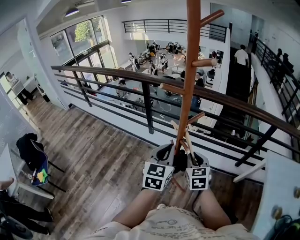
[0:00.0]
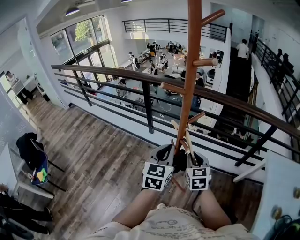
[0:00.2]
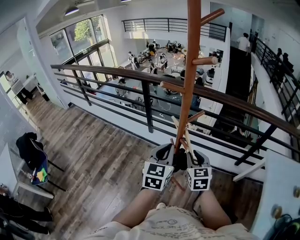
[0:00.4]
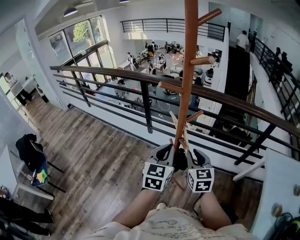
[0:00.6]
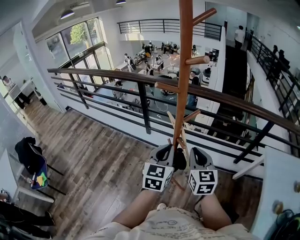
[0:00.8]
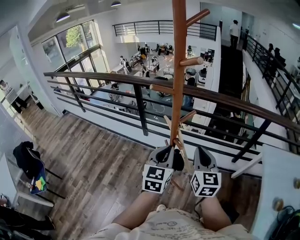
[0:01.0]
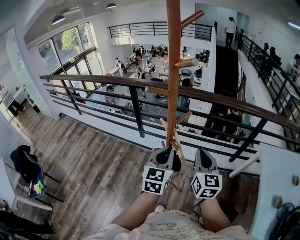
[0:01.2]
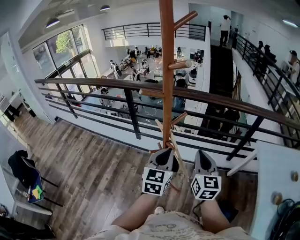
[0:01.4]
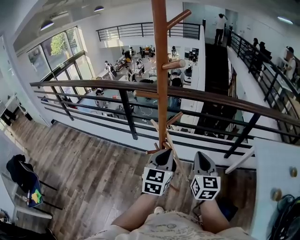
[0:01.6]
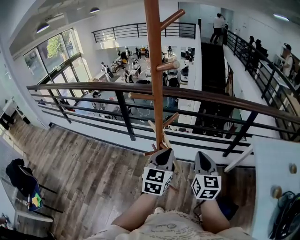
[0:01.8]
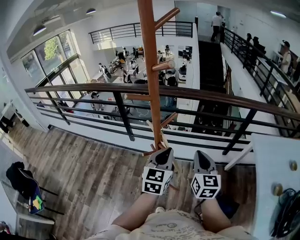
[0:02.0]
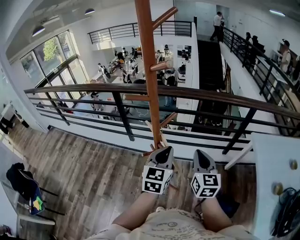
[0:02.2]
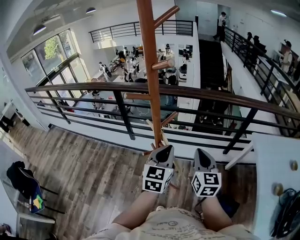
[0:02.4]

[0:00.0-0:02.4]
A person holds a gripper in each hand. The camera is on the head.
0:00.0 to 0:01.2: The right gripper shifts approximately 10 cm upward and to the right, and changes its angle by roughly 30 degrees.
0:01.2 to 0:02.4: The grippers move only a little.

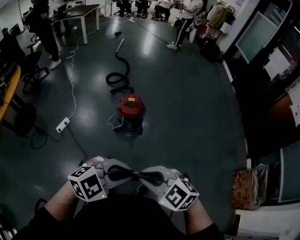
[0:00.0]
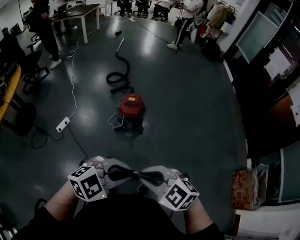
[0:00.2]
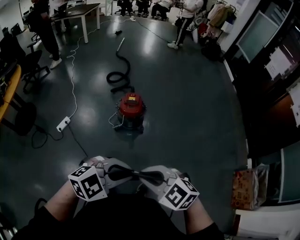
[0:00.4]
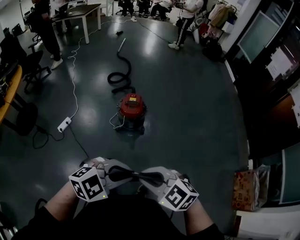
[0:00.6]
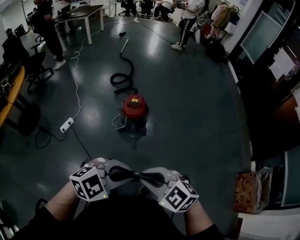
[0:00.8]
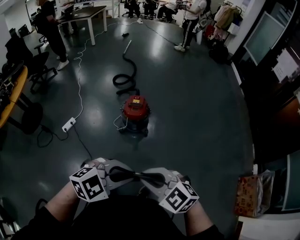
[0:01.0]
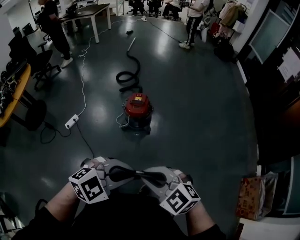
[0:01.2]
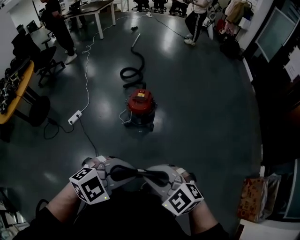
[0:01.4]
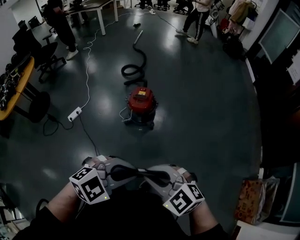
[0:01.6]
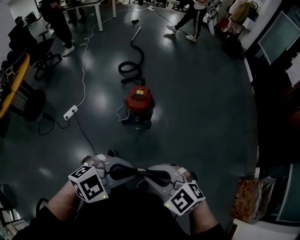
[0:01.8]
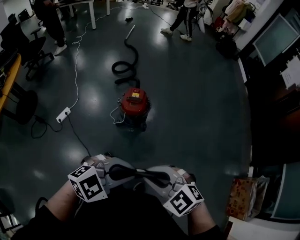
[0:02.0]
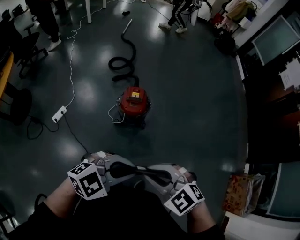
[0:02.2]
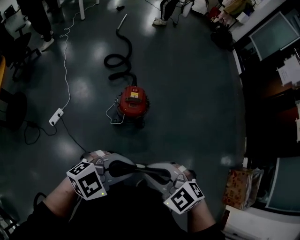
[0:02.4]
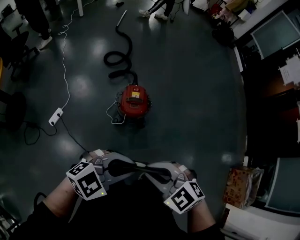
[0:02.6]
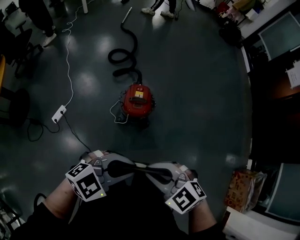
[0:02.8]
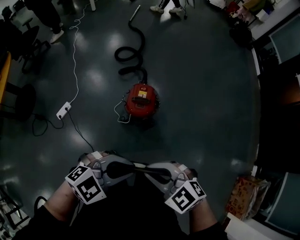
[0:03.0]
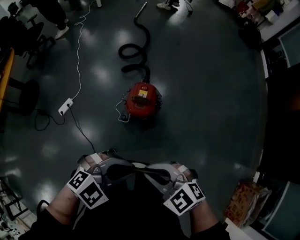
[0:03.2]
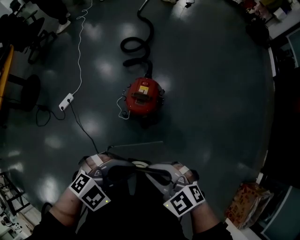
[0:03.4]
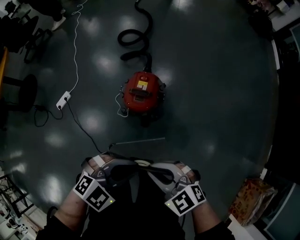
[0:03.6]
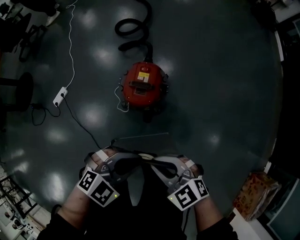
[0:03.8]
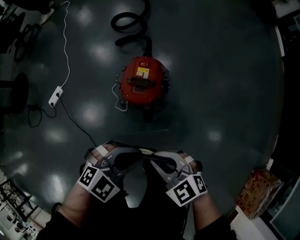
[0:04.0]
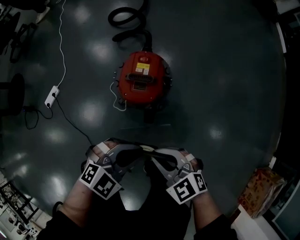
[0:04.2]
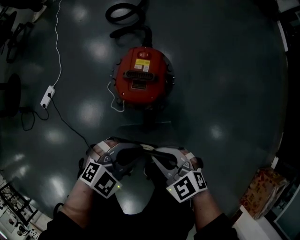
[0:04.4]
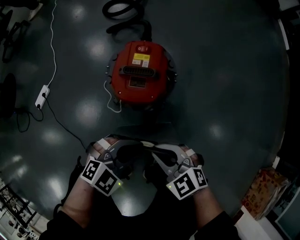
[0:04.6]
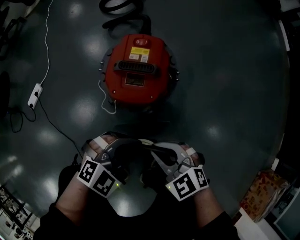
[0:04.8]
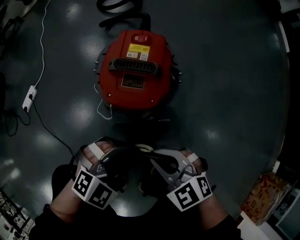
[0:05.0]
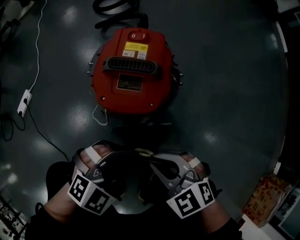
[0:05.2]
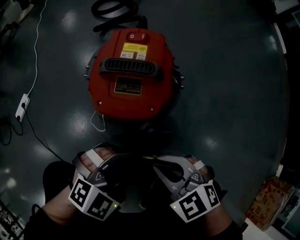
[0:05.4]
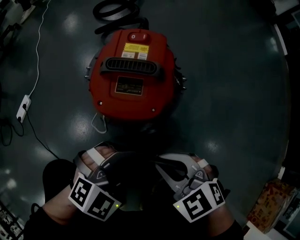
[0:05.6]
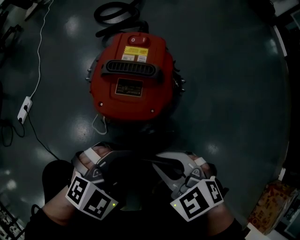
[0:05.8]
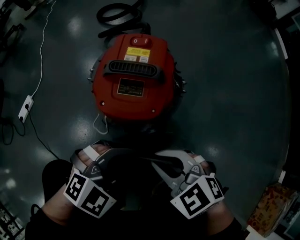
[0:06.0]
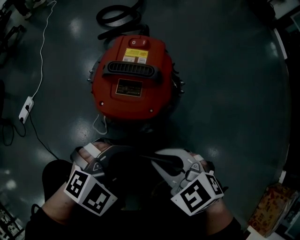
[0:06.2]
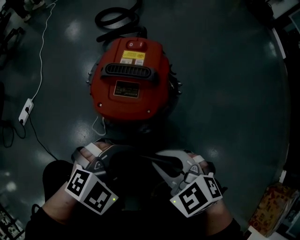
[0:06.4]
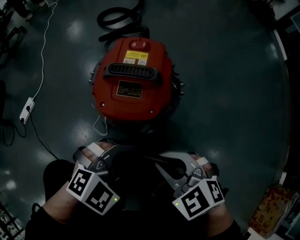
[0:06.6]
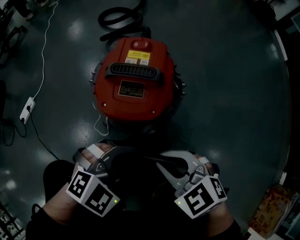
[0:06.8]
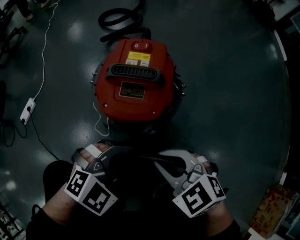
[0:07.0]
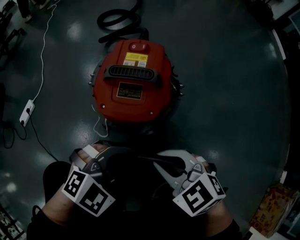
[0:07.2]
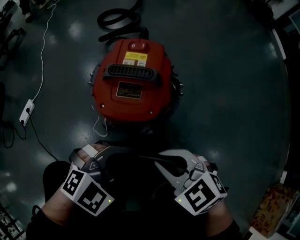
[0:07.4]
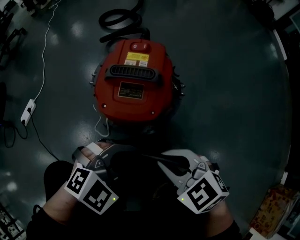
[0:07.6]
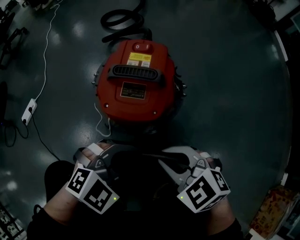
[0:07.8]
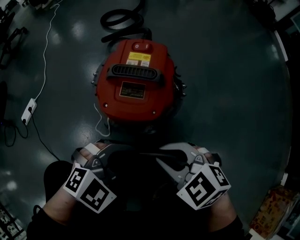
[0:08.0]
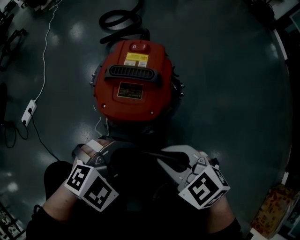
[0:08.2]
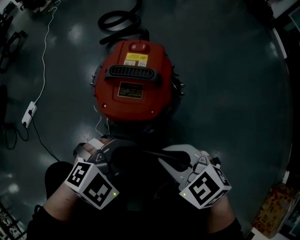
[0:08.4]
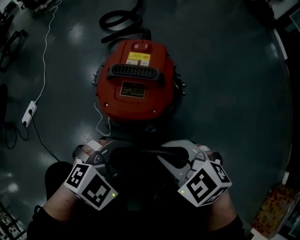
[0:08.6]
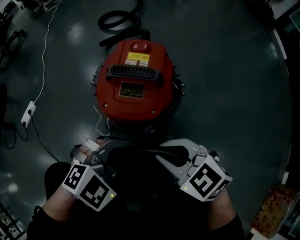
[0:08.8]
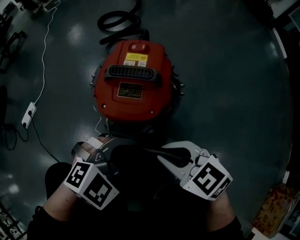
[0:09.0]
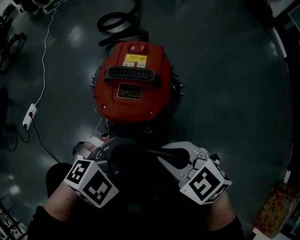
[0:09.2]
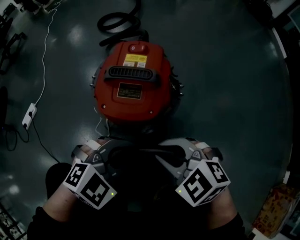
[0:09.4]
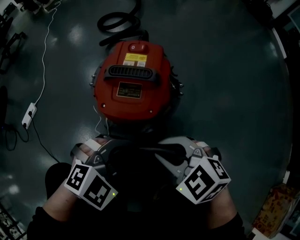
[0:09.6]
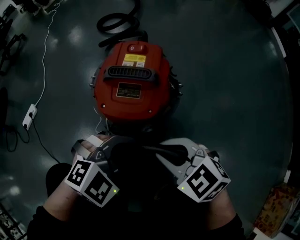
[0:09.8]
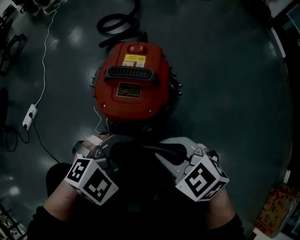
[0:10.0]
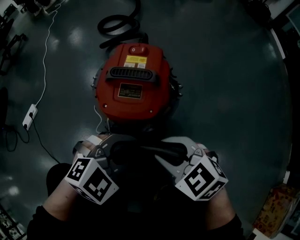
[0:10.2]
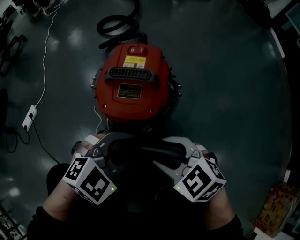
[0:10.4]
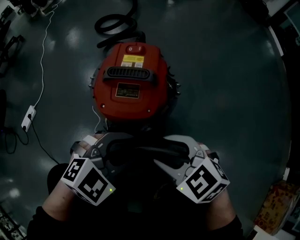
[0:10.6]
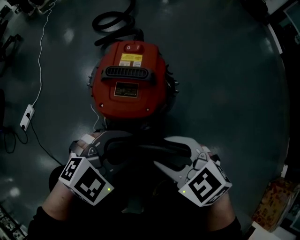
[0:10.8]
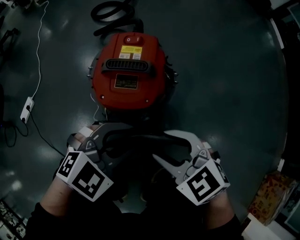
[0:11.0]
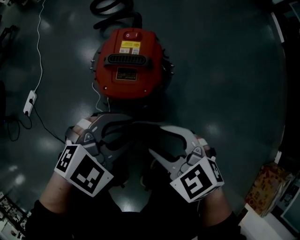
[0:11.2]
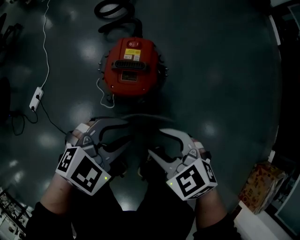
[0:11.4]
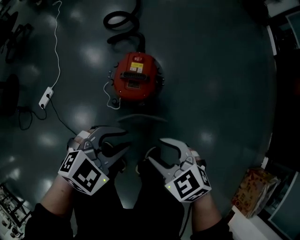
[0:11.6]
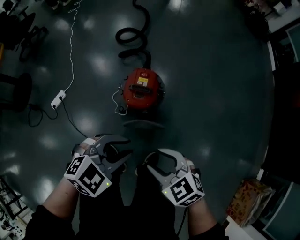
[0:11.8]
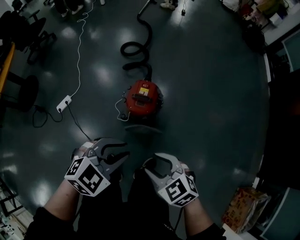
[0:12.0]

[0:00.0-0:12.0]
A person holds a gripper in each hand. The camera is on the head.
0:00.0 to 0:01.6: The left gripper moves roughly 10 cm; the right gripper shifts by approximately 10 cm.
0:01.6 to 0:03.0: The right gripper shifts by about 25 cm. The left gripper changes place by roughly 25 cm.
0:03.0 to 0:04.4: The grippers both shift downward by roughly 35 cm.
0:04.4 to 0:06.0: The two grippers go roughly 15 cm downward.
0:06.0 to 0:09.0: The grippers make only small movements.
0:09.0 to 0:10.4: The left gripper opens up. The right gripper opens its fingers.
0:10.4 to 0:12.0: Both grippers travel together upward, roughly 40 cm.

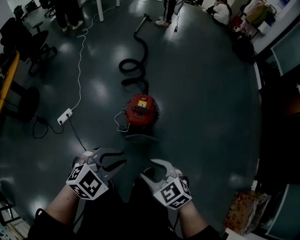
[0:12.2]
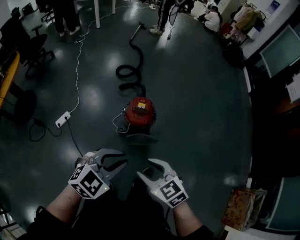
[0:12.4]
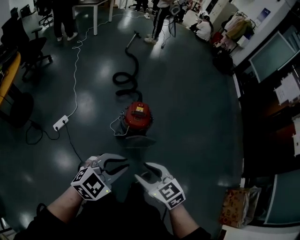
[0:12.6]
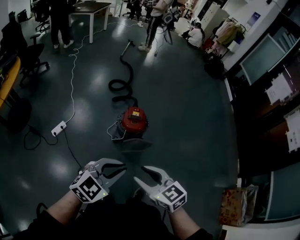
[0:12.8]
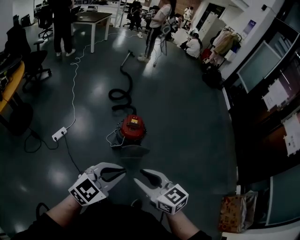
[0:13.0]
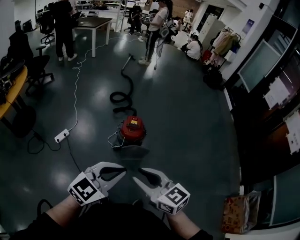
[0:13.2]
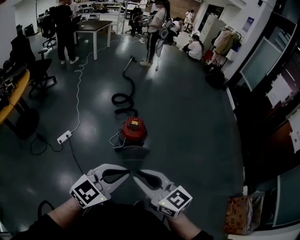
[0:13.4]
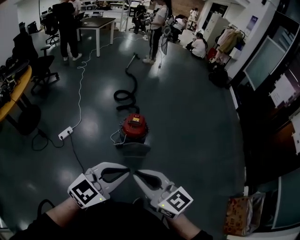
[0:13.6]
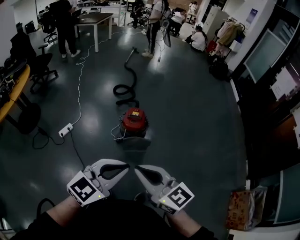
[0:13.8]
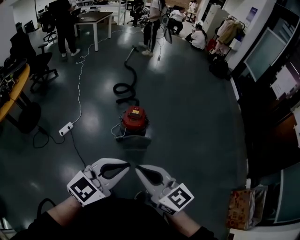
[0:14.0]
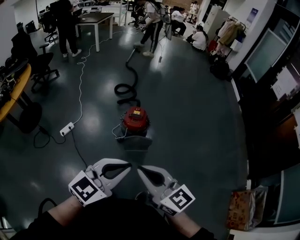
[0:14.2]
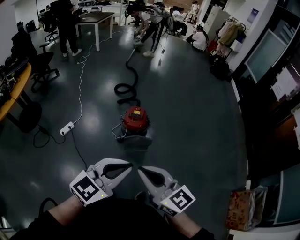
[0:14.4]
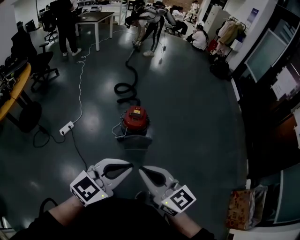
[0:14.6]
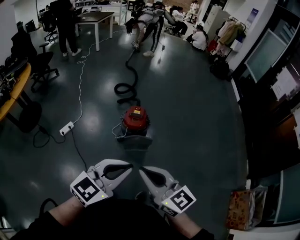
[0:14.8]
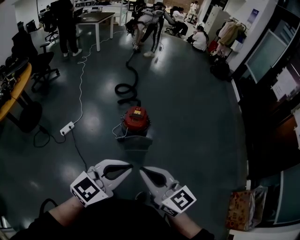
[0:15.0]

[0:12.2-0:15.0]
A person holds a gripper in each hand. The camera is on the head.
0:12.2 to 0:13.6: The right gripper travels upward and backward by approximately 30 cm, angles its fingers upward, by approximately 40 degrees, and closes up; the left gripper goes approximately 30 cm backward and upward, swivels roughly 30 degrees, and closes its fingers.
0:13.6 to 0:15.0: There are only small adjustments of the grippers.

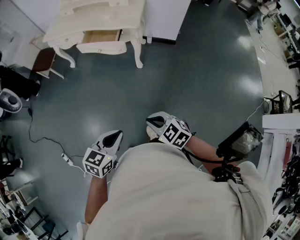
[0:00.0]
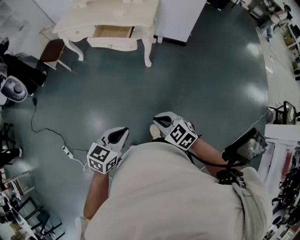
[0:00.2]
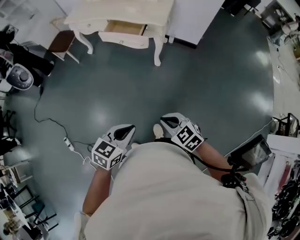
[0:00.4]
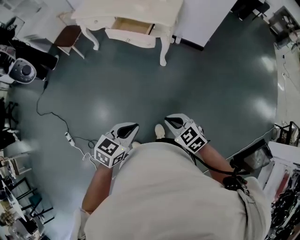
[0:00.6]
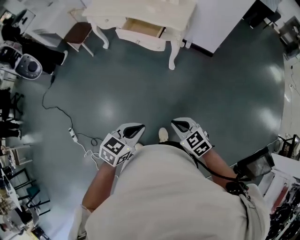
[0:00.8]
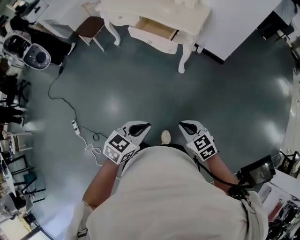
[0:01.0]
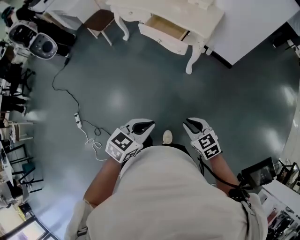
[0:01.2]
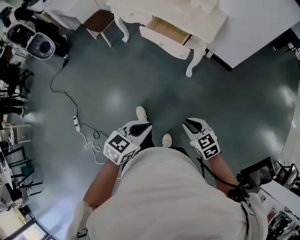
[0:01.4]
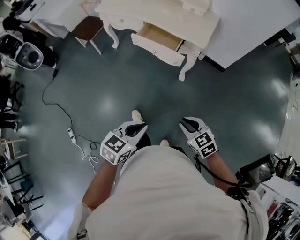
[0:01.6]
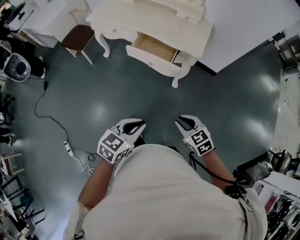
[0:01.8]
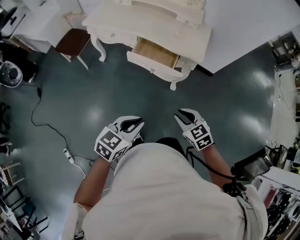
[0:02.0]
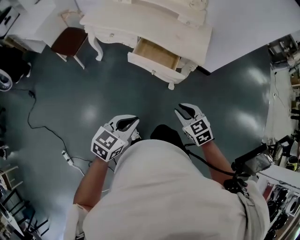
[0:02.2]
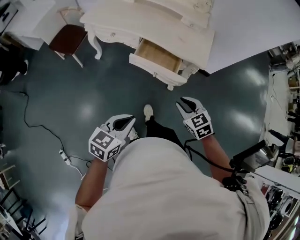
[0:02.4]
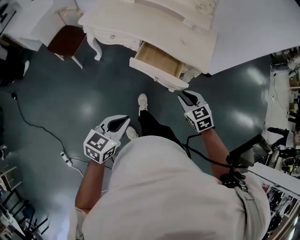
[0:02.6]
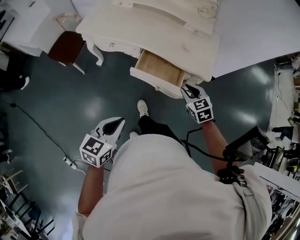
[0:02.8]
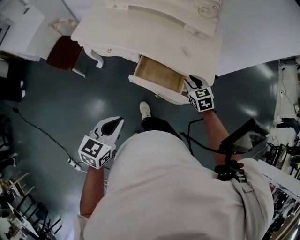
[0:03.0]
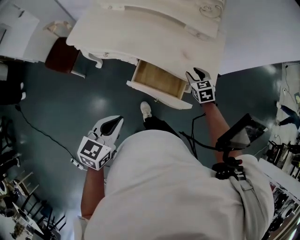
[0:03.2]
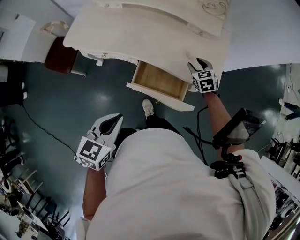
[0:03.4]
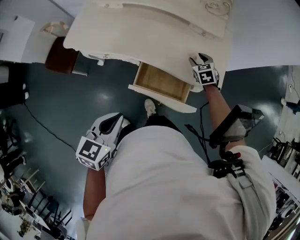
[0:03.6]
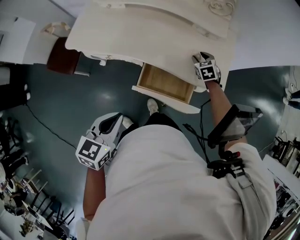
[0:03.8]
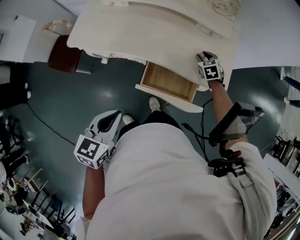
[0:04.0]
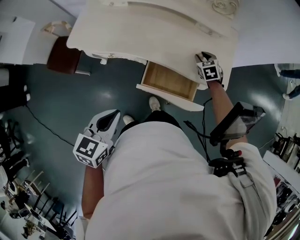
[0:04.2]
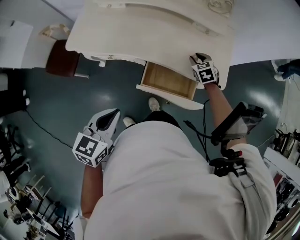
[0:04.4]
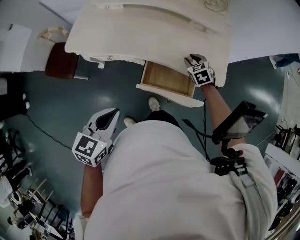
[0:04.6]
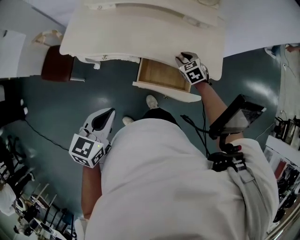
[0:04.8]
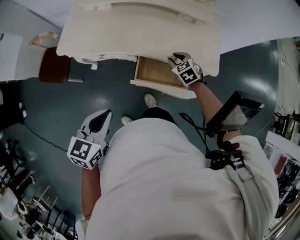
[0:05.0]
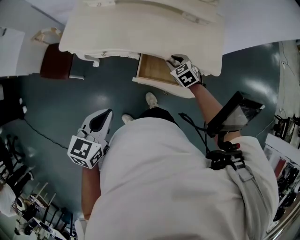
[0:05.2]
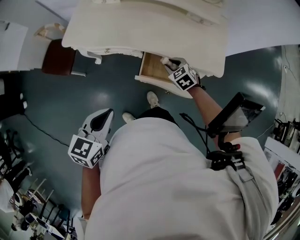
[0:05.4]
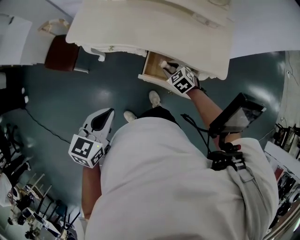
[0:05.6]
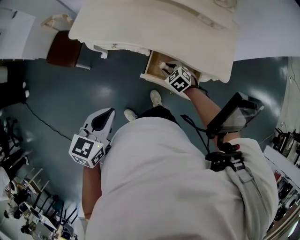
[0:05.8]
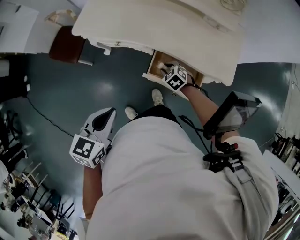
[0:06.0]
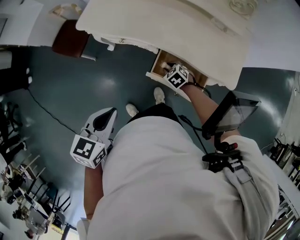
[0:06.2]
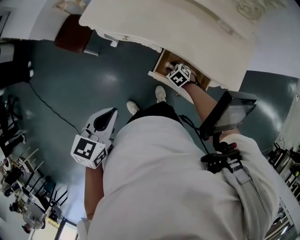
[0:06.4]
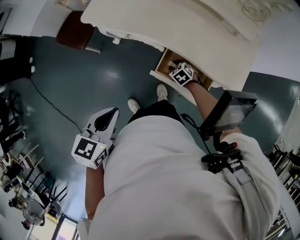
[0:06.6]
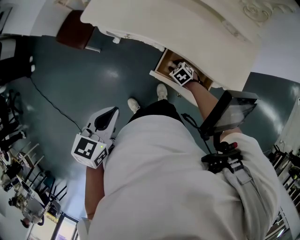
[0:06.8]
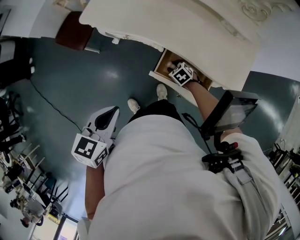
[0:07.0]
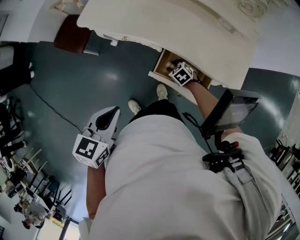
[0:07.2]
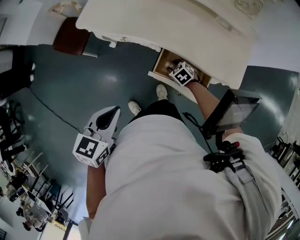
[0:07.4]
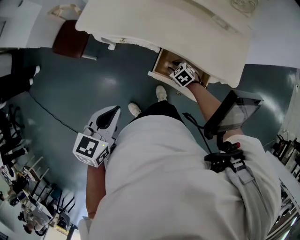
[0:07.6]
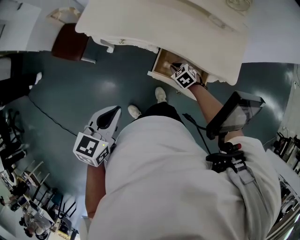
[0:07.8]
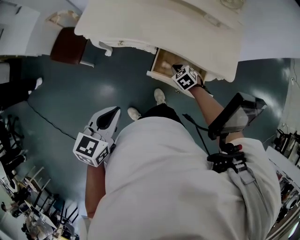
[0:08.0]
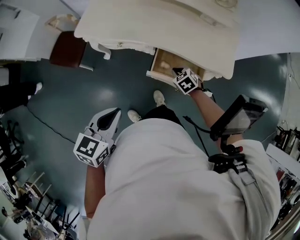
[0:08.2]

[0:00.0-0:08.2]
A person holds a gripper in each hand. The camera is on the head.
0:00.0 to 0:01.6: The grippers both shift forward by approximately 20 cm.
0:01.6 to 0:03.2: The pair of grippers is taken forward, about 50 cm. The right gripper turns by some 30 degrees, and opens its fingers.
0:03.2 to 0:05.0: Both grippers travel together to the left, some 10 cm. The right gripper goes forward and returns, roughly 10 cm each way.
0:05.0 to 0:06.6: The right gripper travels downward and to the left by about 20 cm, and rotates roughly 30 degrees.
0:06.6 to 0:08.2: The right gripper heads upward and backward, covering some 10 cm, and closes its fingers.
